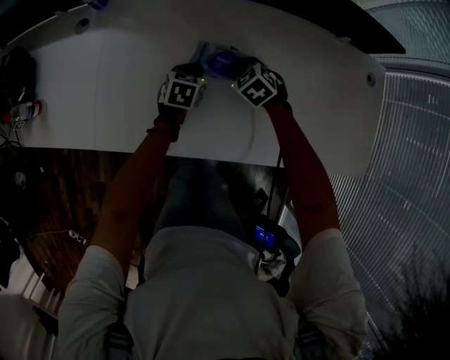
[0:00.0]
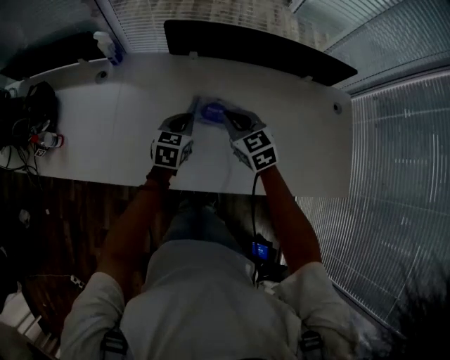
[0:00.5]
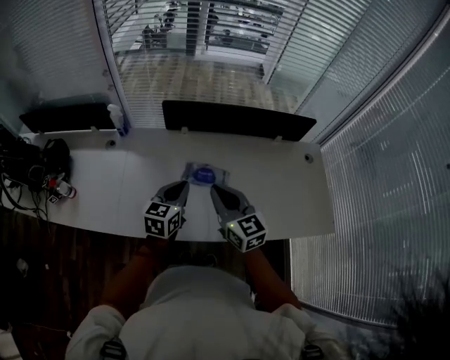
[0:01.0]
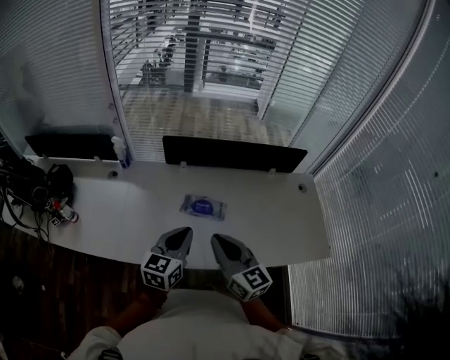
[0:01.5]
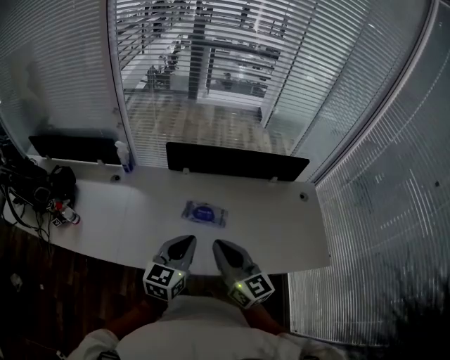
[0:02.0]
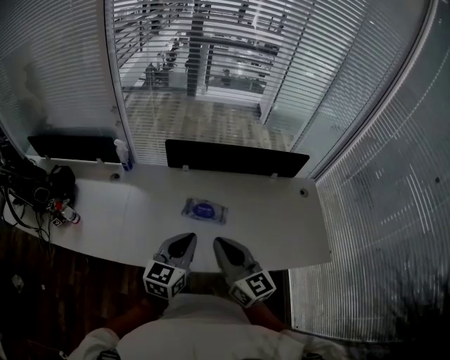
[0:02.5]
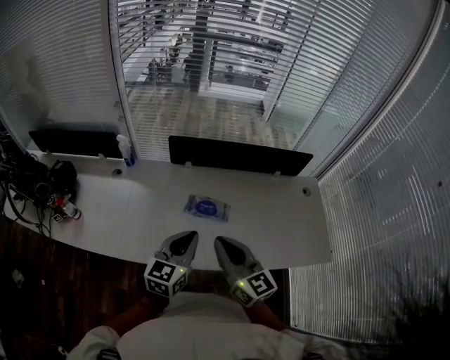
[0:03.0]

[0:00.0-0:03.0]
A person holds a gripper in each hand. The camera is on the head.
0:00.0 to 0:01.5: The two grippers go about 40 cm upward and backward. The right gripper tips its fingers upward by some 60 degrees. Meanwhile the left gripper tips its fingers upward by some 40 degrees.
0:01.5 to 0:03.0: The grippers make only small movements.

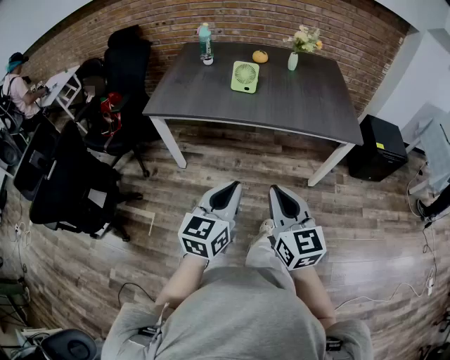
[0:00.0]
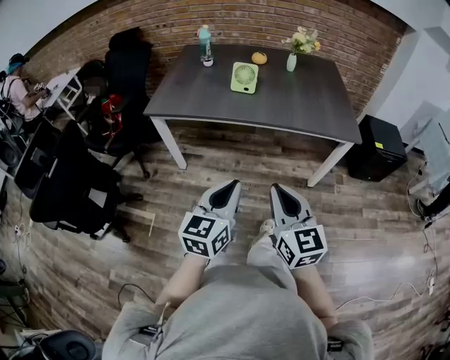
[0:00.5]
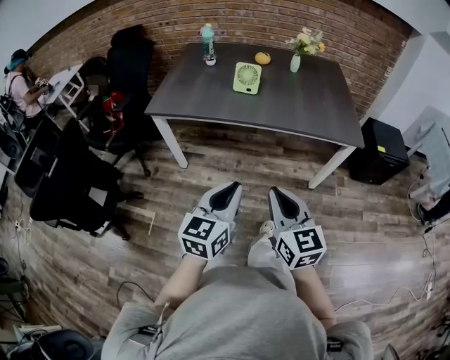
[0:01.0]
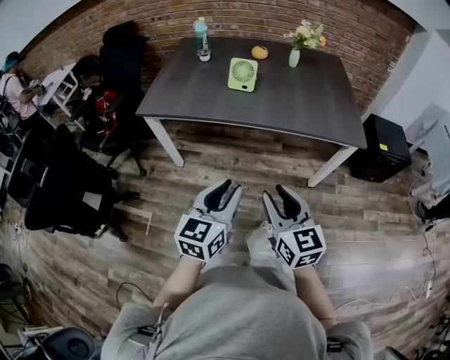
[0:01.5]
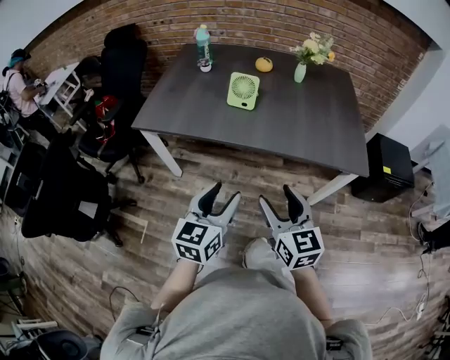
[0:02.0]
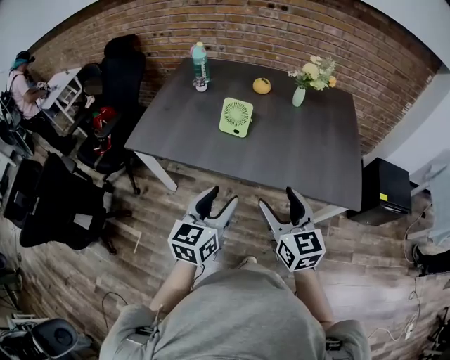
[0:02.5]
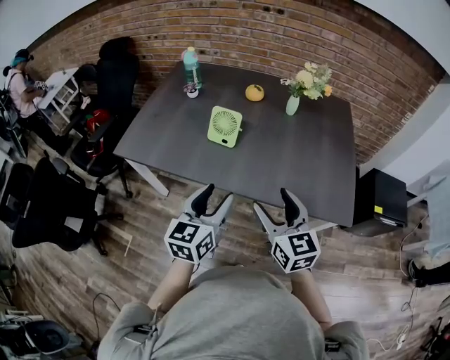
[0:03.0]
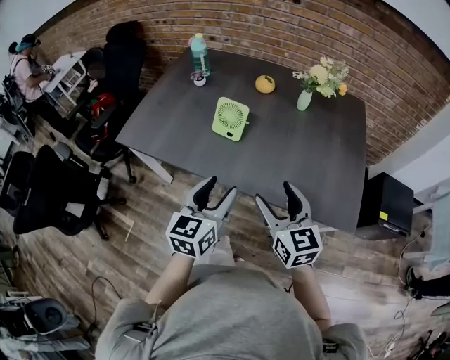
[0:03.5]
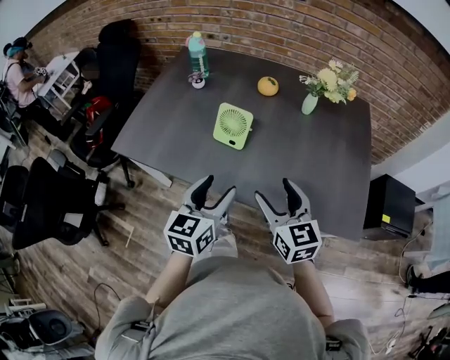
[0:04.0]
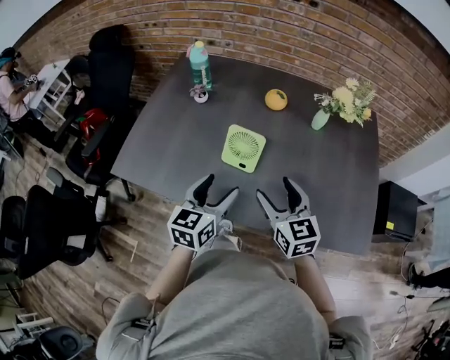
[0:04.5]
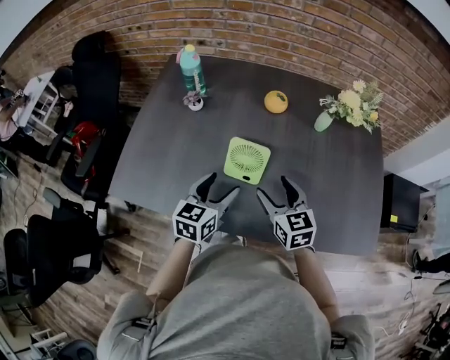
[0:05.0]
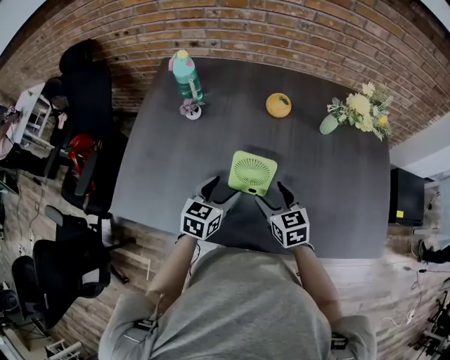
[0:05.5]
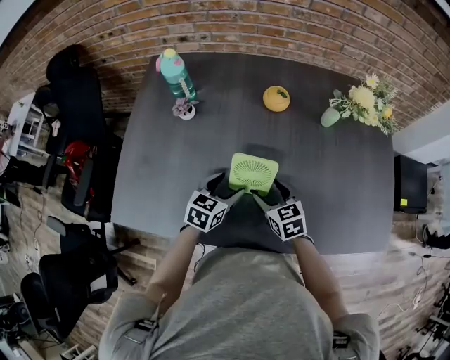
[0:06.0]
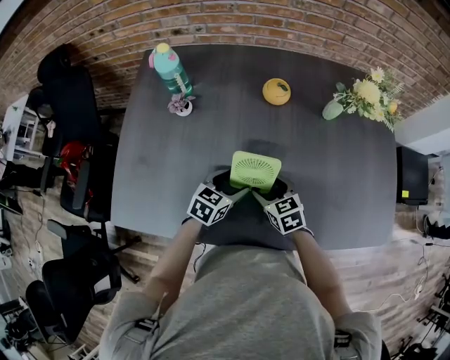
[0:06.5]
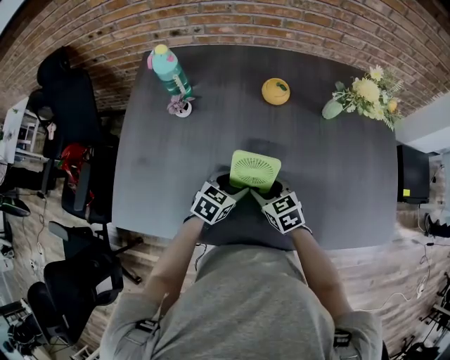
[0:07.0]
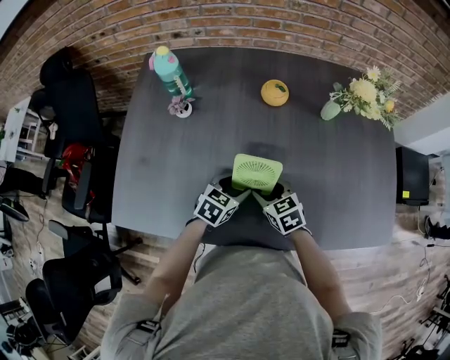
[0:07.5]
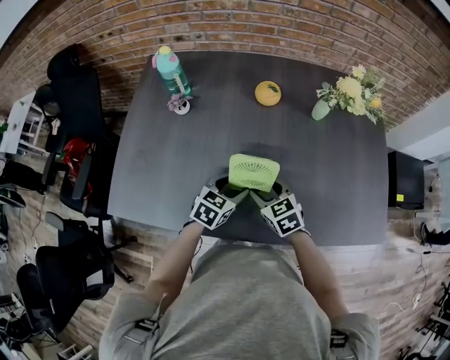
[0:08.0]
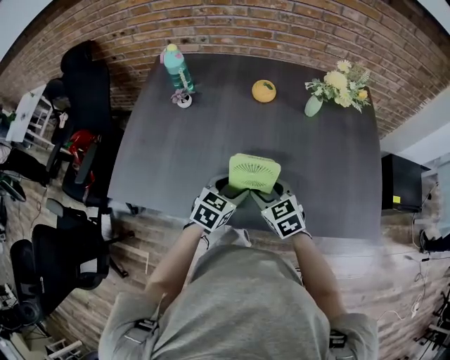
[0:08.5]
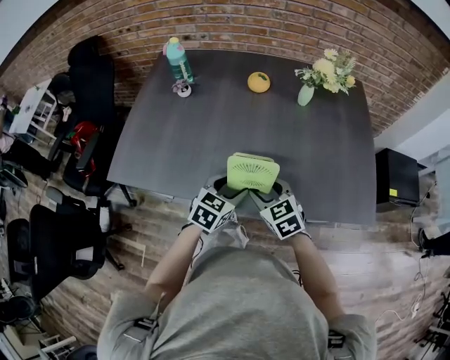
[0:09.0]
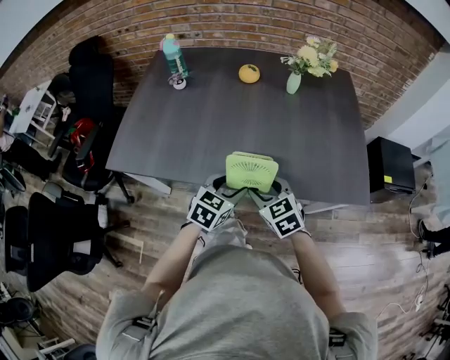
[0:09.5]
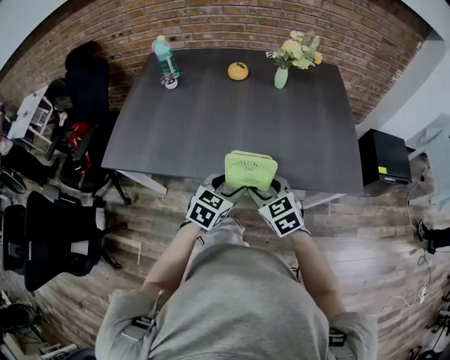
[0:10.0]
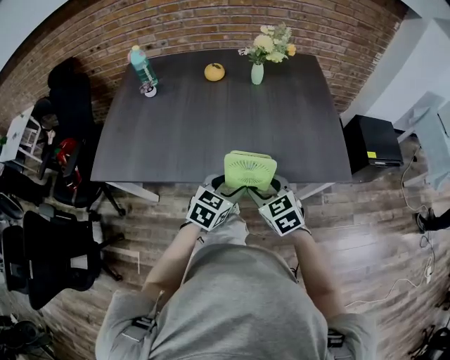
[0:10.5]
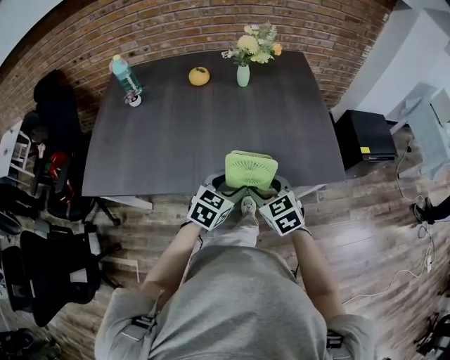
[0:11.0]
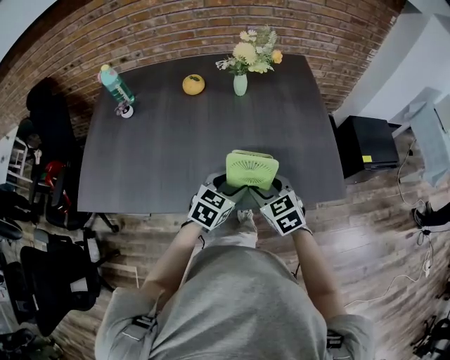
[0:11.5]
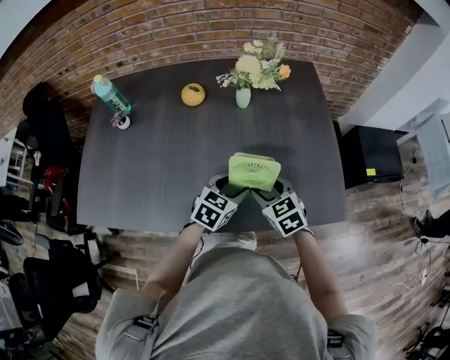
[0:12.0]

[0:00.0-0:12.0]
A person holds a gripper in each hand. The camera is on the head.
0:00.0 to 0:02.0: Both grippers move forward, roughly 15 cm. The right gripper opens up; the left gripper opens.
0:02.0 to 0:04.0: The two grippers go about 25 cm forward.
0:04.0 to 0:06.0: The right gripper goes some 30 cm forward, downward and to the left, and swivels roughly 20 degrees. Meanwhile the left gripper shifts some 30 cm forward and downward, and changes its angle by approximately 30 degrees.
0:06.0 to 0:08.0: The left gripper heads to the right, covering some 5 cm.
0:08.0 to 0:10.0: Both grippers travel together backward and to the right, about 25 cm.
0:10.0 to 0:12.0: Both grippers travel together forward and to the right, approximately 25 cm.

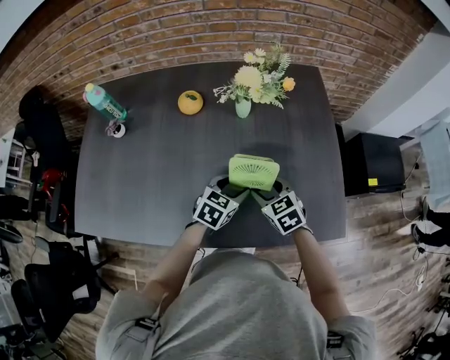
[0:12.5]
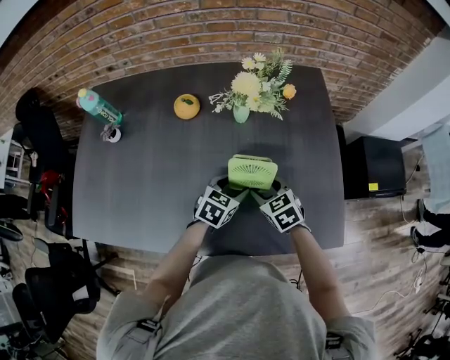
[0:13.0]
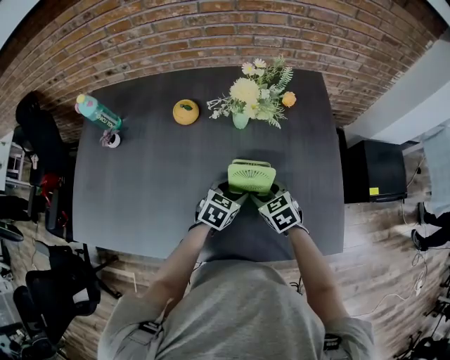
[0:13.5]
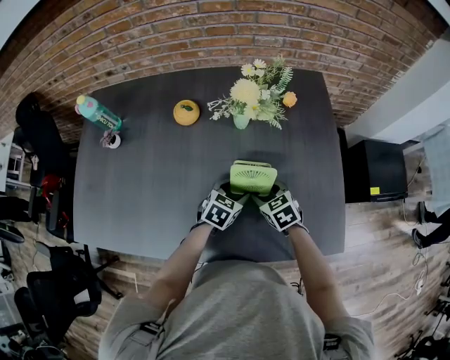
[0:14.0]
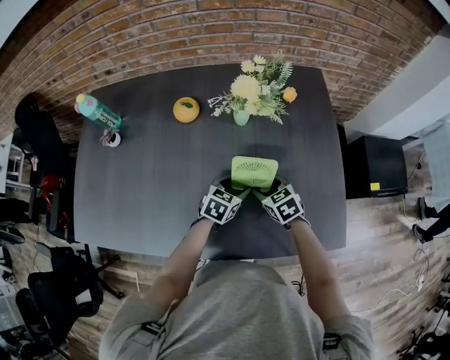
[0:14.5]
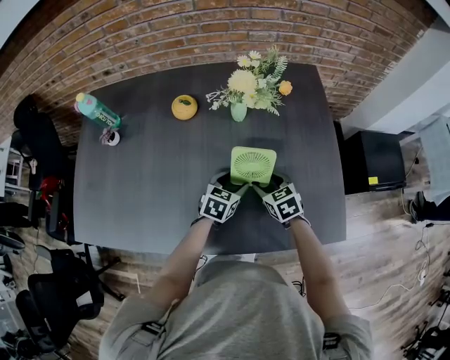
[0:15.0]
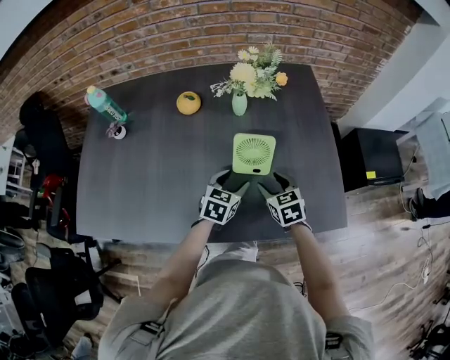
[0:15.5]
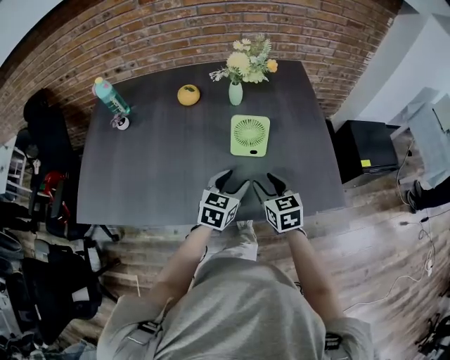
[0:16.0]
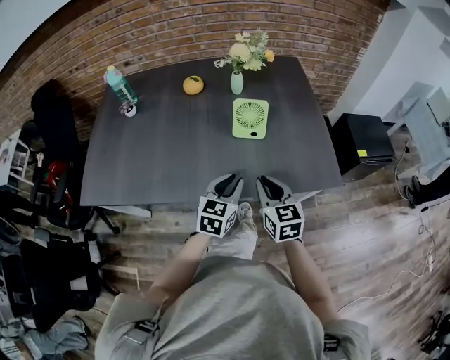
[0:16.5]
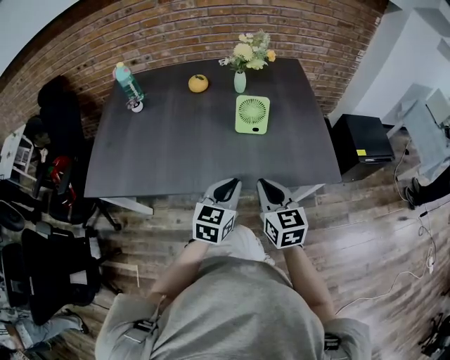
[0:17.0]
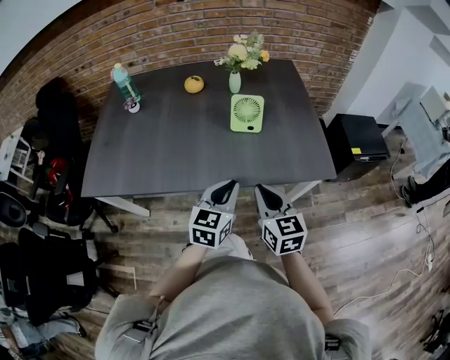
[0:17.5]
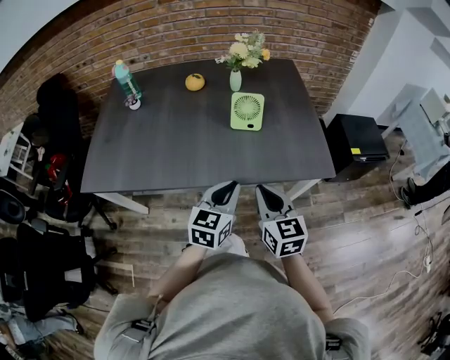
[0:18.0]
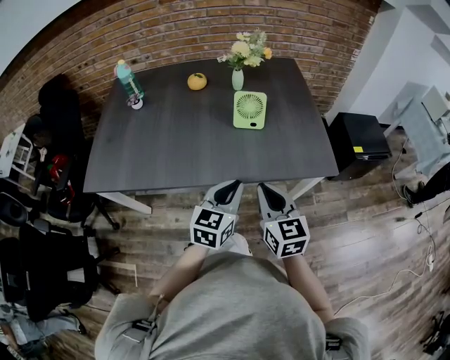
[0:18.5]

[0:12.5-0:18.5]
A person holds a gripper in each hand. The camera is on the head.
0:12.5 to 0:14.5: Both grippers move downward and forward, about 10 cm.
0:14.5 to 0:16.5: The two grippers go approximately 30 cm backward and upward. The right gripper changes its angle by about 40 degrees, and closes; the left gripper turns by approximately 20 degrees, and closes.
0:16.5 to 0:18.5: Both grippers move backward and upward, approximately 10 cm.

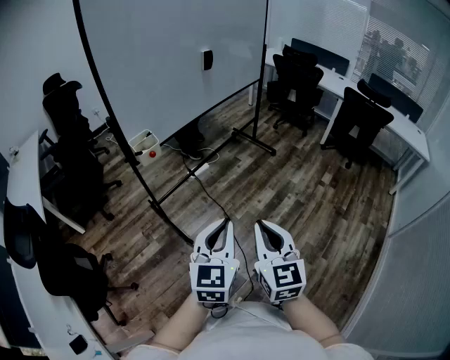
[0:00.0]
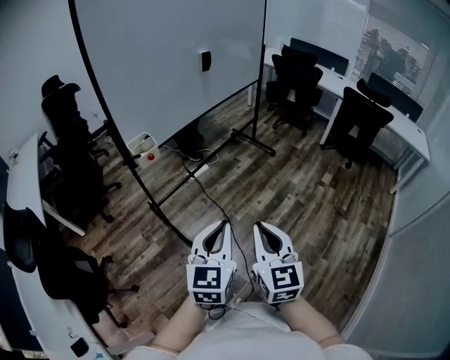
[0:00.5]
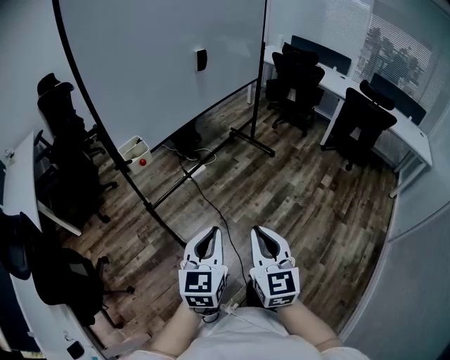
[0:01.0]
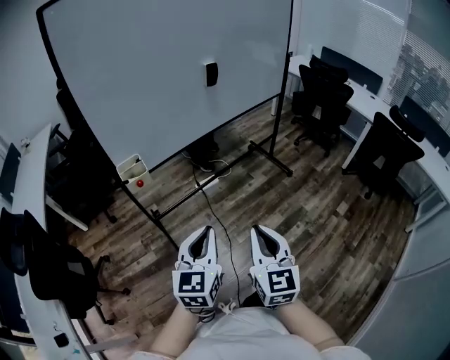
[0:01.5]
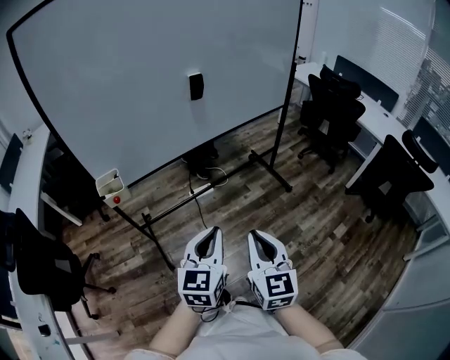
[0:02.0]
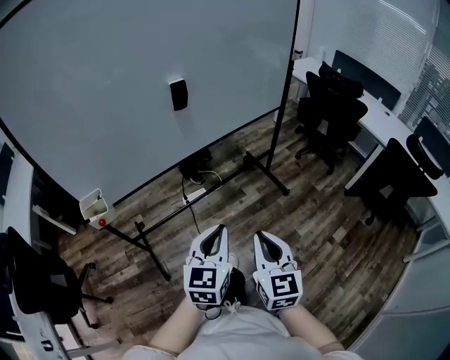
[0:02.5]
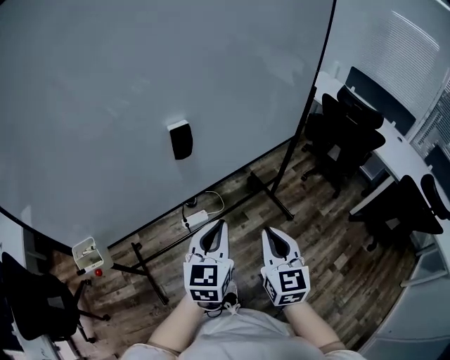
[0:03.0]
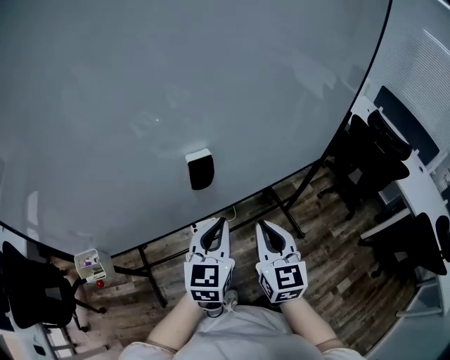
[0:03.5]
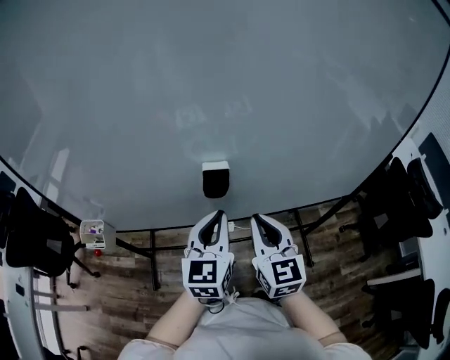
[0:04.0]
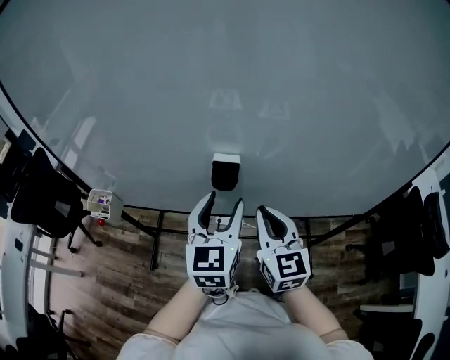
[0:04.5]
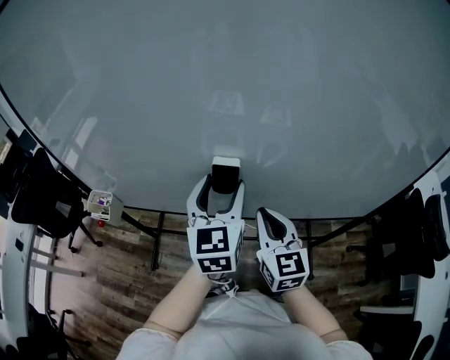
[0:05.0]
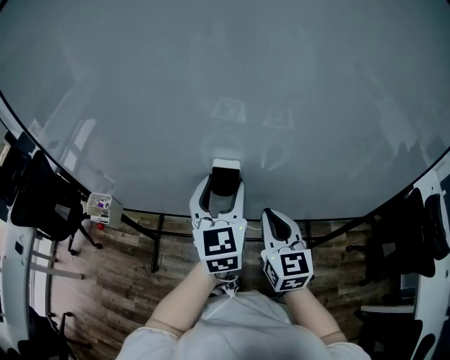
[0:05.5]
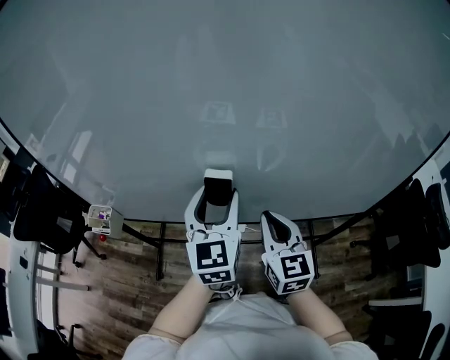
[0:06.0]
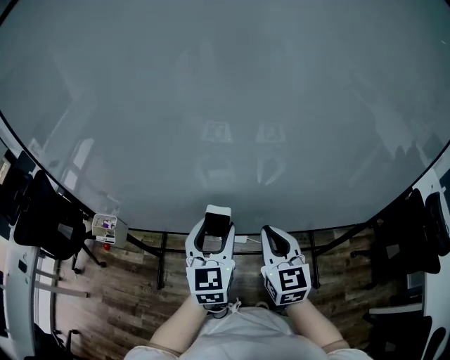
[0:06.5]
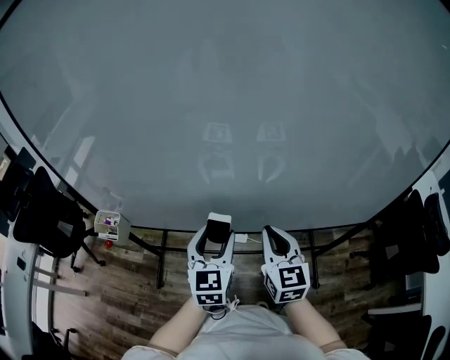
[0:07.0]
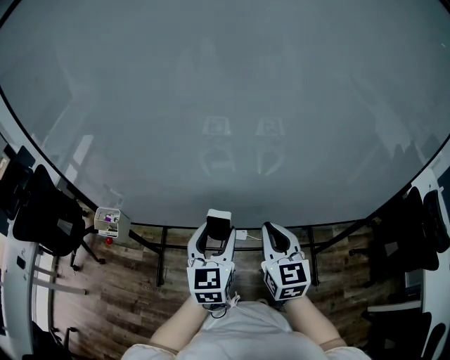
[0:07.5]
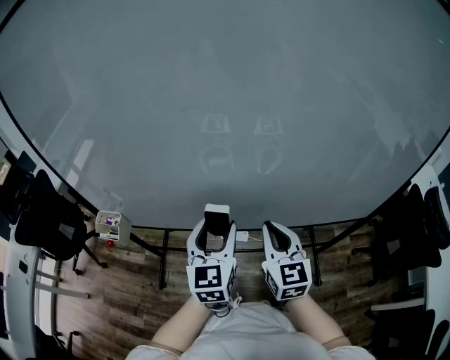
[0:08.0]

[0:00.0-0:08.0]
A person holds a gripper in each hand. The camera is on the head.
0:00.0 to 0:02.0: Both grippers move forward and to the right, some 35 cm.
0:02.0 to 0:04.0: The pair of grippers is taken about 50 cm. The left gripper turns by about 30 degrees. The right gripper turns by about 30 degrees.
0:04.0 to 0:06.0: The left gripper shifts roughly 10 cm forward and upward, and opens.
0:06.0 to 0:08.0: The left gripper shifts approximately 5 cm downward.
